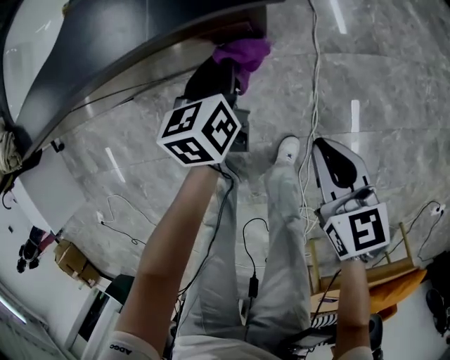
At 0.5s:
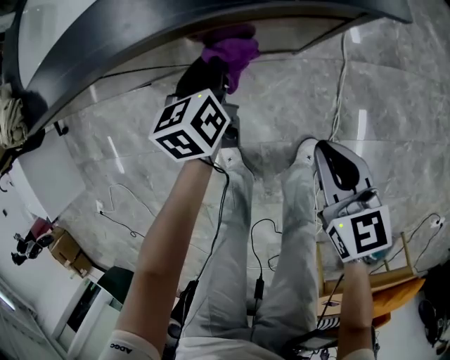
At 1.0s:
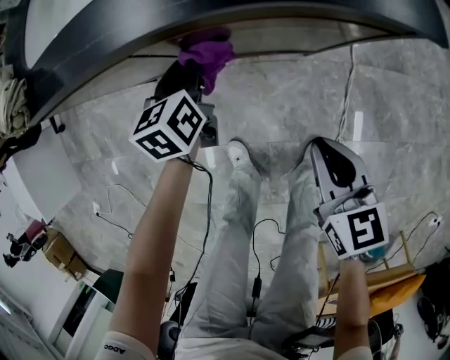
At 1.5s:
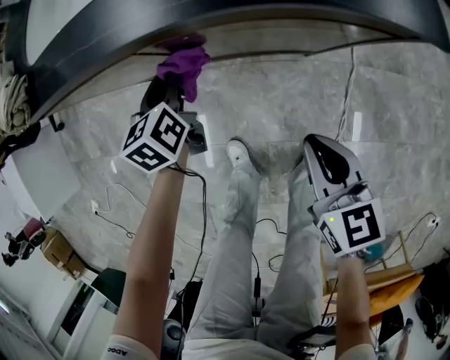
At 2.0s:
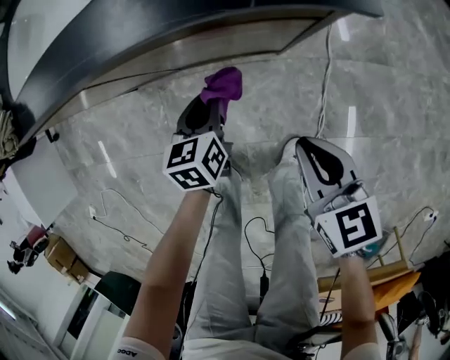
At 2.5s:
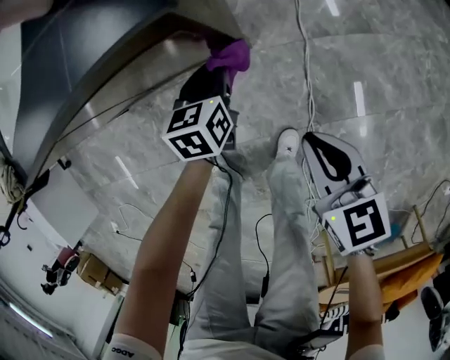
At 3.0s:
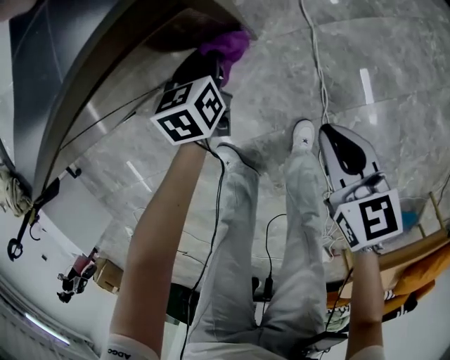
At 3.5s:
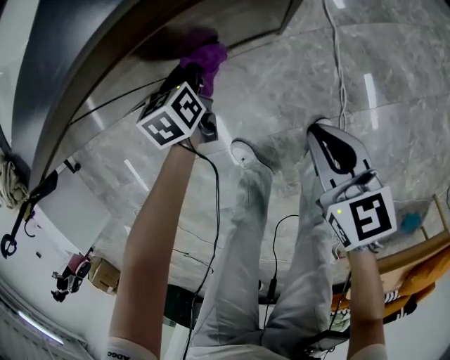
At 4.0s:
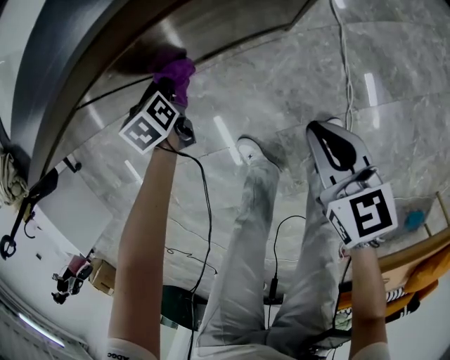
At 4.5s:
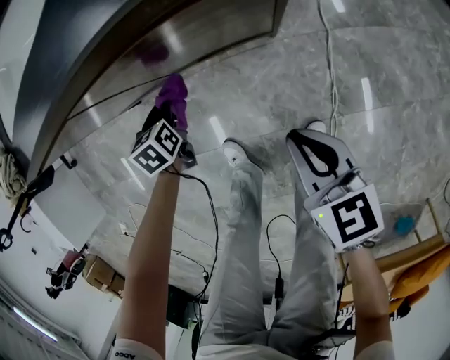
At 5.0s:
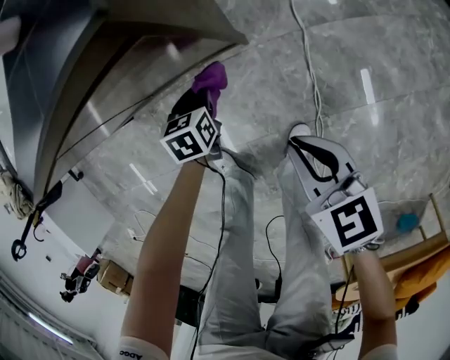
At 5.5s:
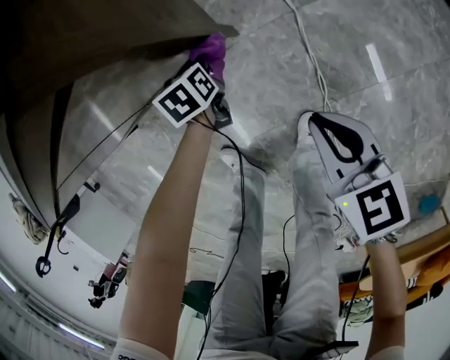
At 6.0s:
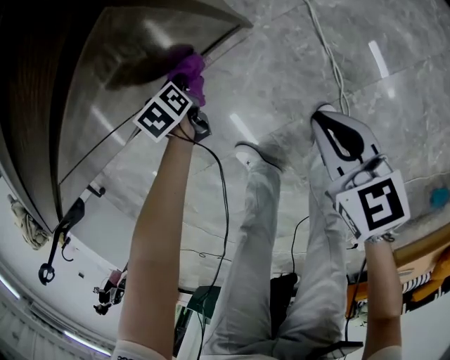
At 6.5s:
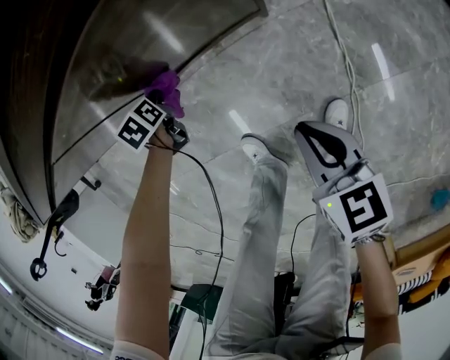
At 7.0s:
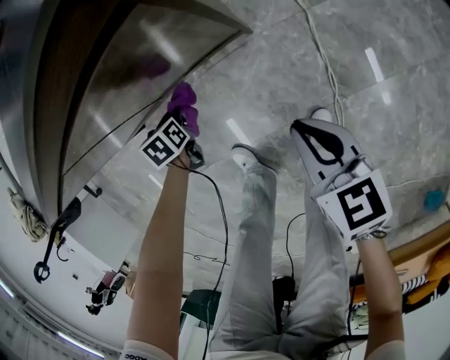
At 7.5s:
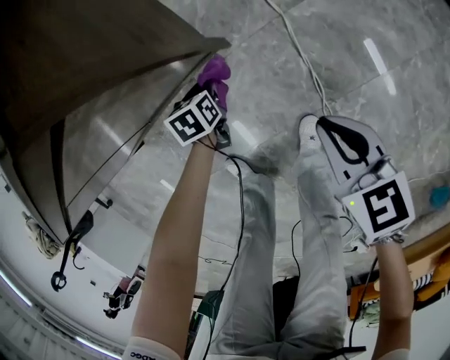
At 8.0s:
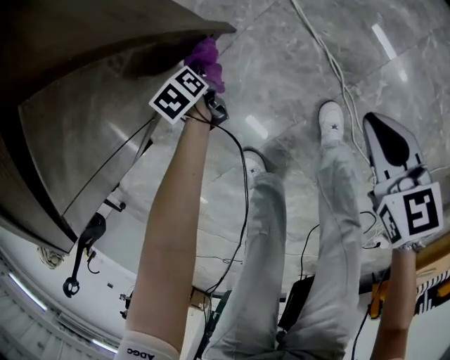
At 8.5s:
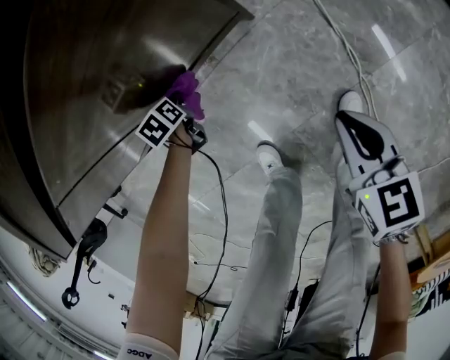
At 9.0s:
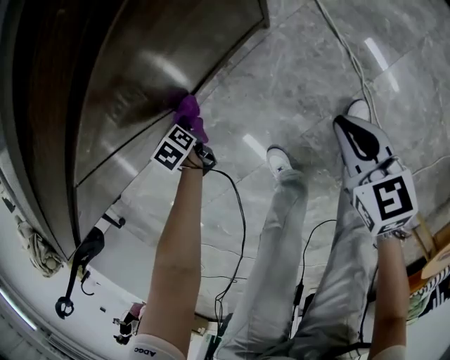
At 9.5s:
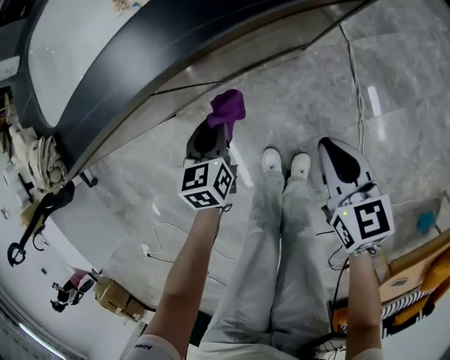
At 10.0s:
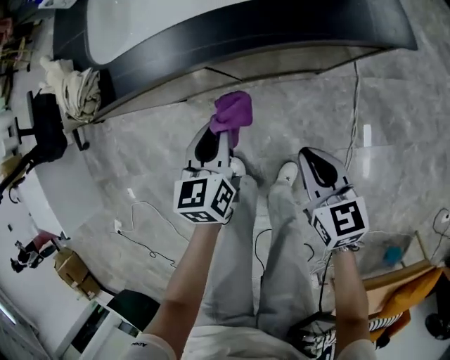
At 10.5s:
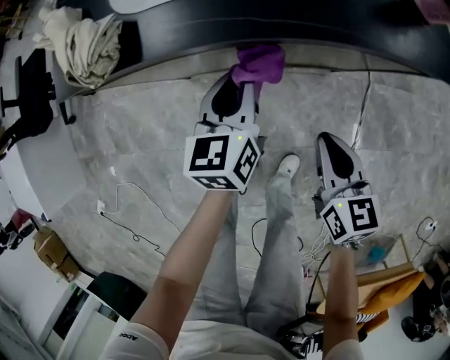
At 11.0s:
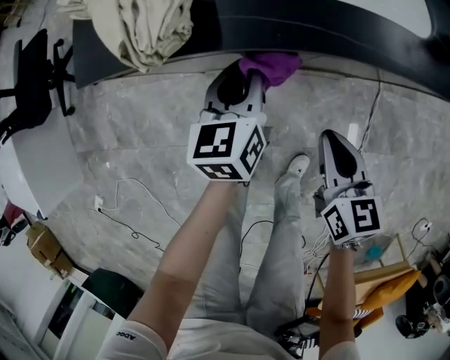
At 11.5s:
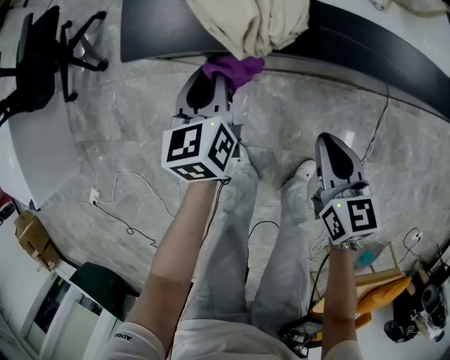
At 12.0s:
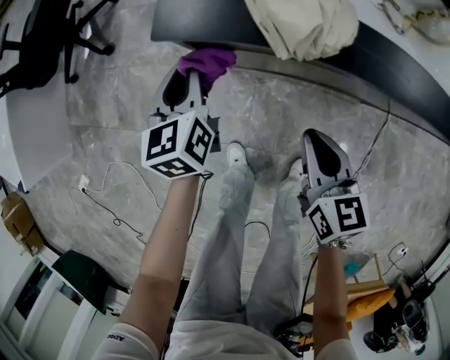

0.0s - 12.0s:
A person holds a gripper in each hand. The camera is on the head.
0.0s - 2.0s: The left gripper heads to the left, covering roughly 15 cm. Meanwhile the right gripper is displaced to the left by roughly 10 cm.
2.0s - 4.0s: The left gripper travels to the left, forward and downward by about 20 cm, while the right gripper goes roughly 10 cm to the left and downward.
4.0s - 6.0s: The grippers both shift to the right and downward by about 15 cm.
6.0s - 8.0s: The right gripper is displaced to the right, backward and downward by roughly 15 cm. Meanwhile the left gripper moves left and right over about 30 cm, changing direction 2 times.
8.0s - 10.0s: The right gripper is displaced to the left and upward by roughly 40 cm, and rotates some 30 degrees; the left gripper travels upward and to the left by roughly 50 cm, and angles its fingers upward, by roughly 30 degrees.
10.0s - 12.0s: The two grippers go roughly 35 cm to the left and forward. The left gripper rotates some 20 degrees.

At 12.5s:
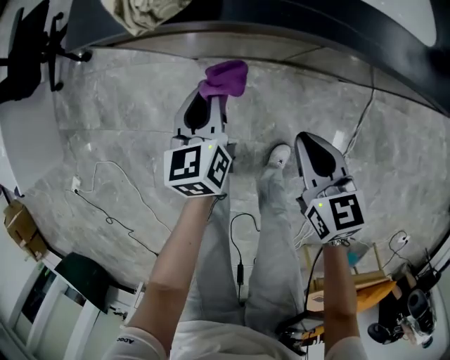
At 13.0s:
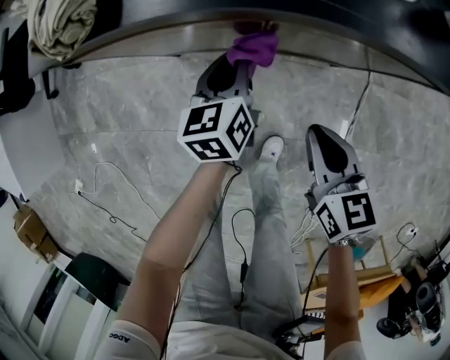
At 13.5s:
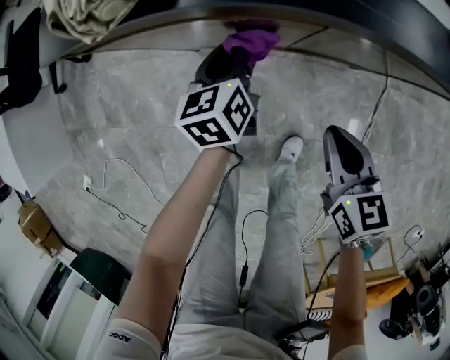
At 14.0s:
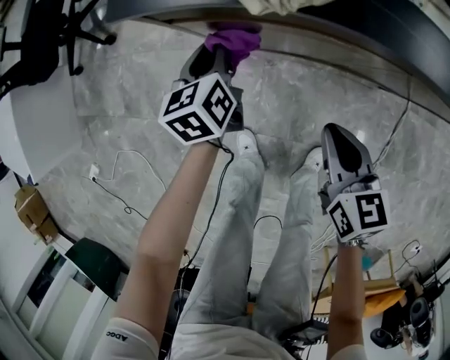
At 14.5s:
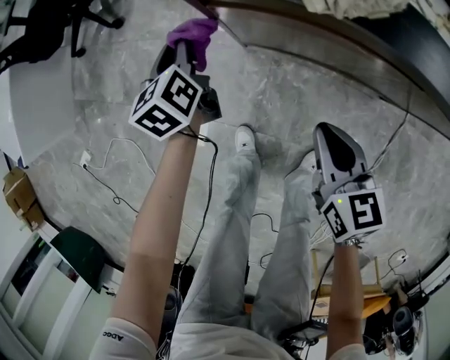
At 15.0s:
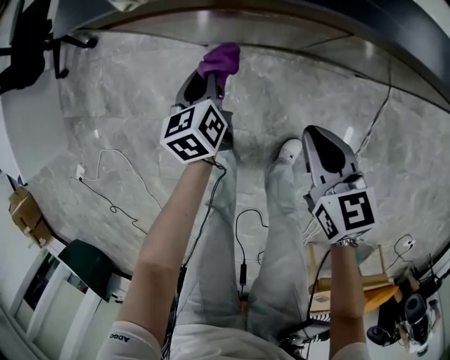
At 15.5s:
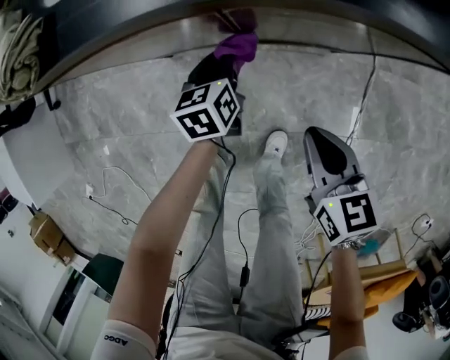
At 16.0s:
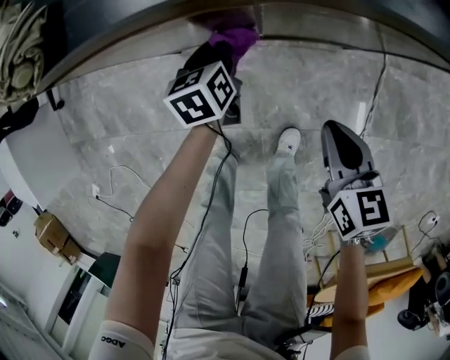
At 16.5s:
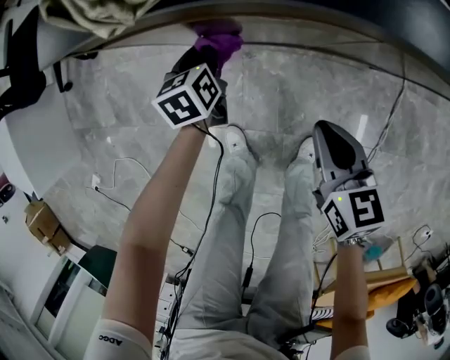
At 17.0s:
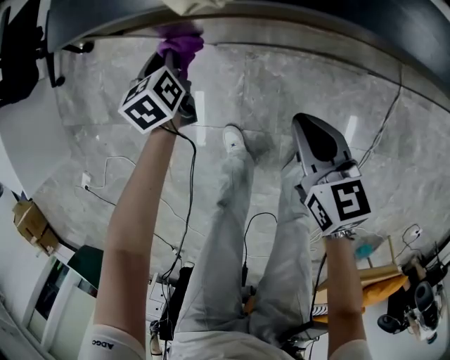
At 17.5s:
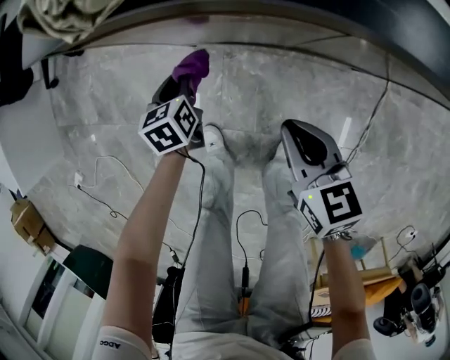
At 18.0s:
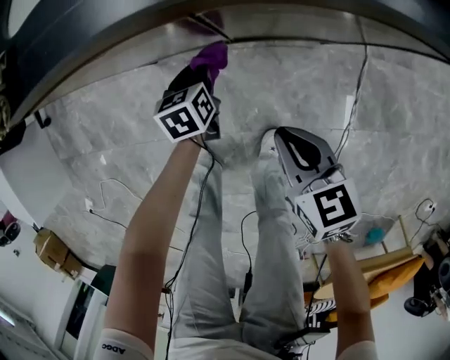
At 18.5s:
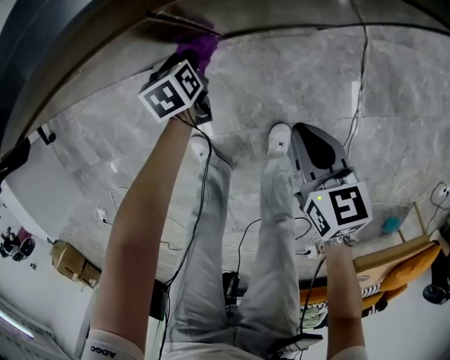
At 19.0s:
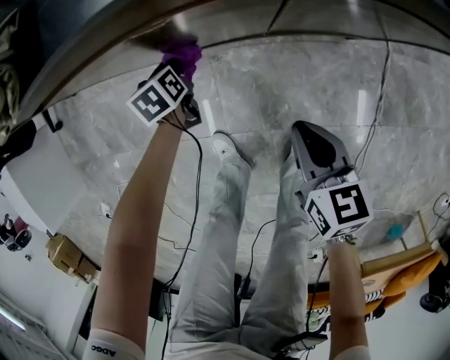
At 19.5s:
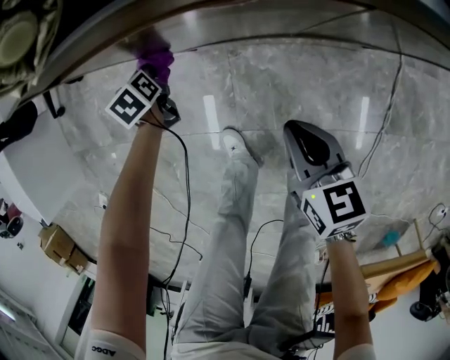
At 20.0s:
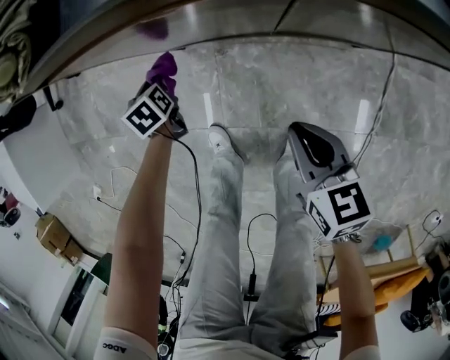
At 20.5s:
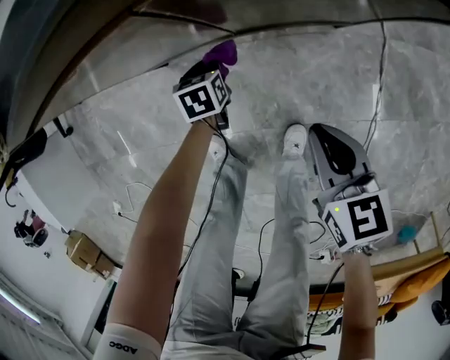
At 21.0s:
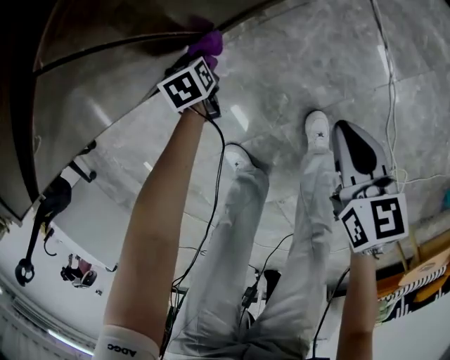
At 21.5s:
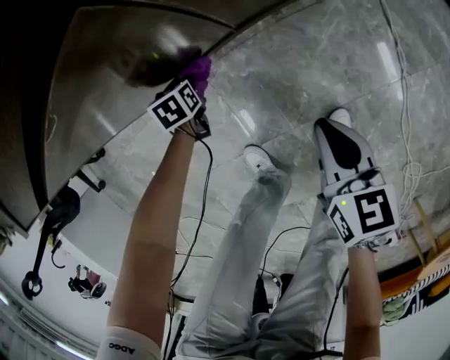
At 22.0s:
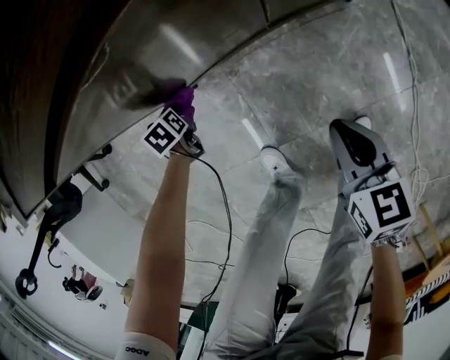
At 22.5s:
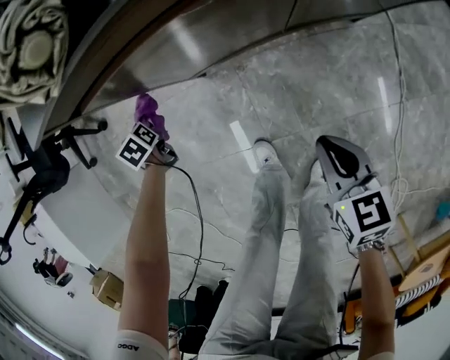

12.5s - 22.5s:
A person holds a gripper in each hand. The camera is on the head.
12.5s - 14.5s: The right gripper is displaced to the left and forward by approximately 15 cm. The left gripper is displaced to the left and forward by some 25 cm.
14.5s - 16.5s: The right gripper travels to the right by about 10 cm. Meanwhile the left gripper is displaced to the right and downward by some 20 cm, and changes its angle by about 30 degrees.
16.5s - 18.5s: The left gripper travels to the right and downward by about 20 cm; the right gripper goes approximately 20 cm to the right, backward and downward.
20.5s - 22.5s: The right gripper changes place by some 20 cm, while the left gripper moves some 40 cm, and swivels some 20 degrees.

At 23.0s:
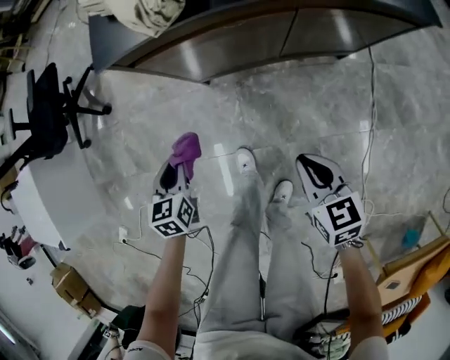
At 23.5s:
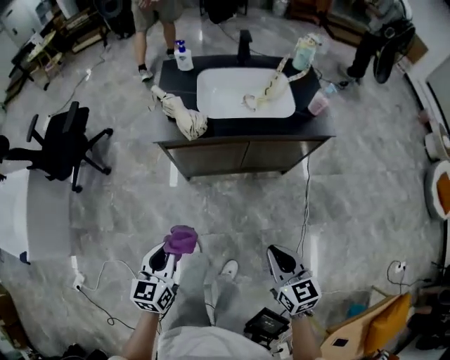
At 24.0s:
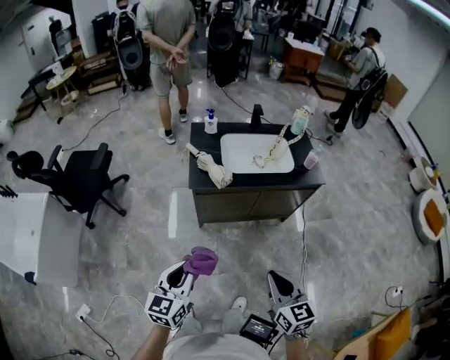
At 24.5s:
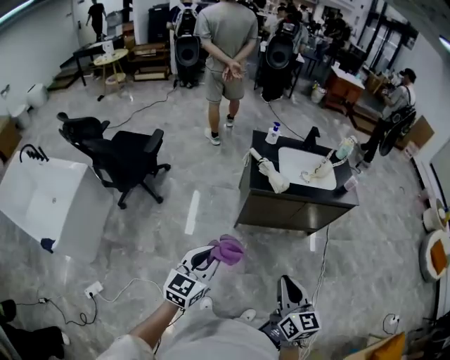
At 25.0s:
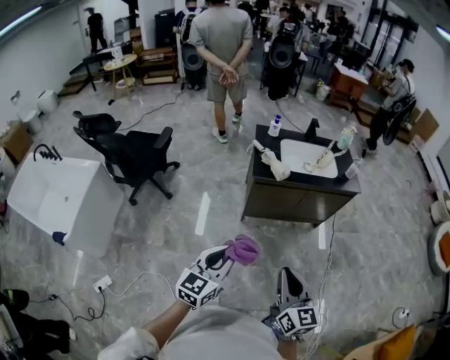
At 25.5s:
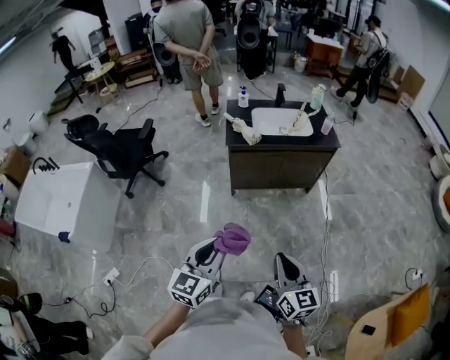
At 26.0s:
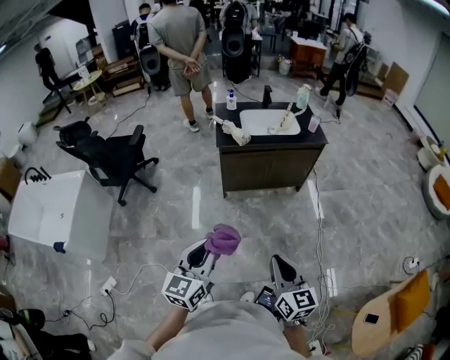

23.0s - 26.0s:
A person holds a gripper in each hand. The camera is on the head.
23.0s - 24.5s: The right gripper heads upward, to the left and backward, covering approximately 60 cm, and turns by roughly 30 degrees; the left gripper travels upward by approximately 50 cm, and tips its fingers upward by some 30 degrees.
24.5s - 26.0s: The two grippers go about 30 cm backward and to the right.

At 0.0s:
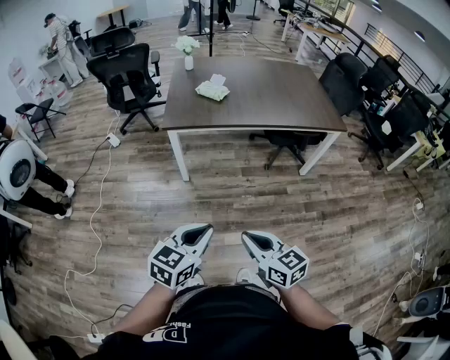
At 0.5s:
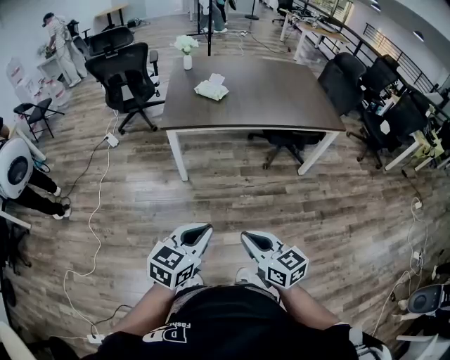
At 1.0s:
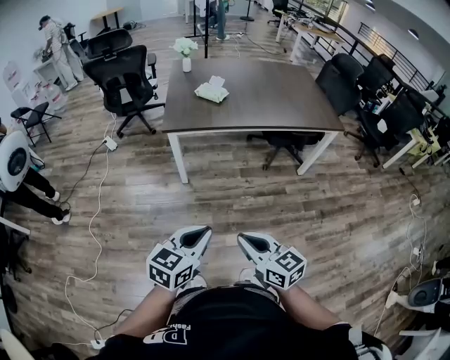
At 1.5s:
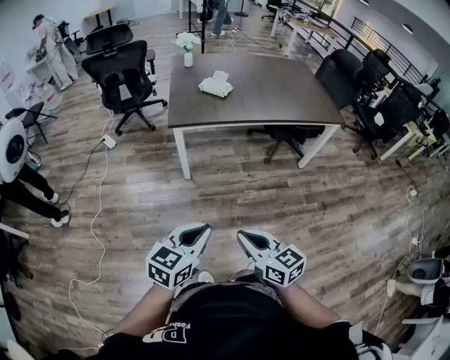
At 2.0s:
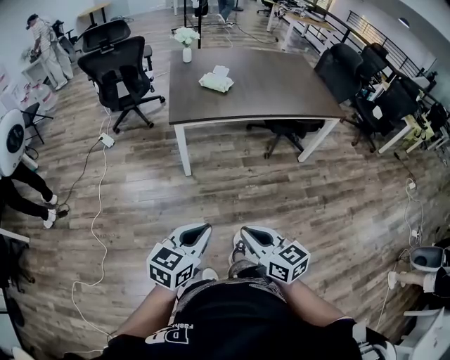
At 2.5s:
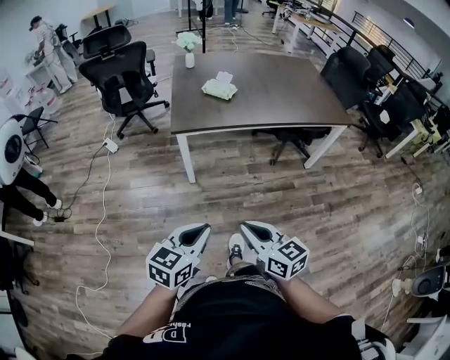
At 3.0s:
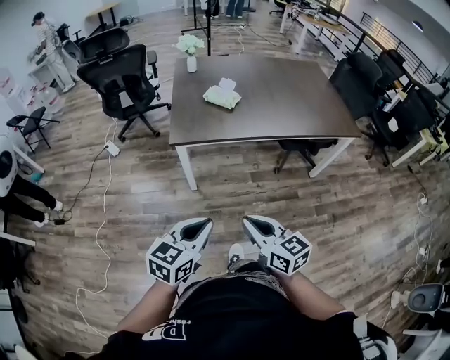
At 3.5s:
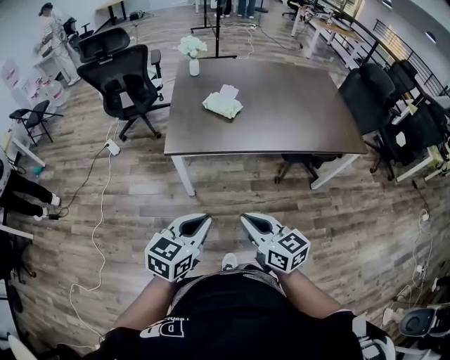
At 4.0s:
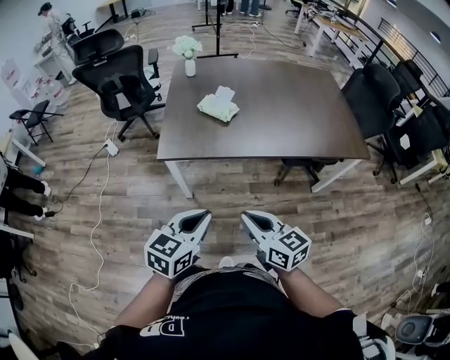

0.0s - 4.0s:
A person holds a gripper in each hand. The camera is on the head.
0.0s - 2.0s: The grippers both shift to the left by about 15 cm.
2.0s - 4.0s: Both grippers move forward, some 30 cm.
